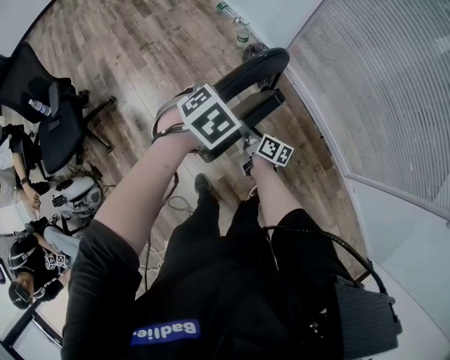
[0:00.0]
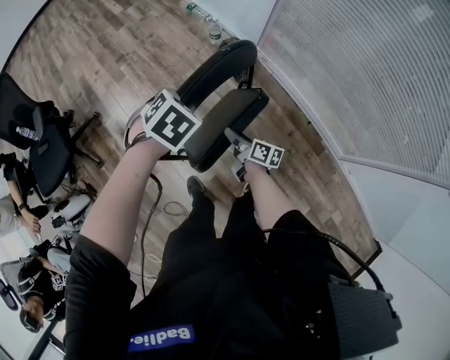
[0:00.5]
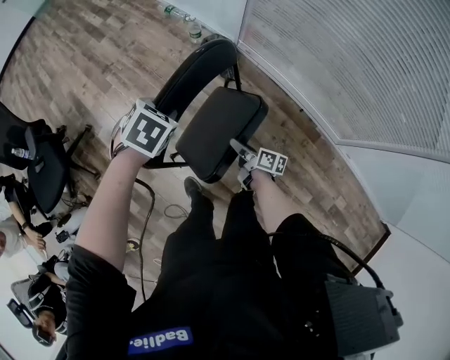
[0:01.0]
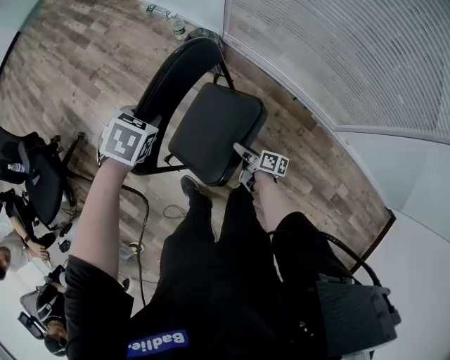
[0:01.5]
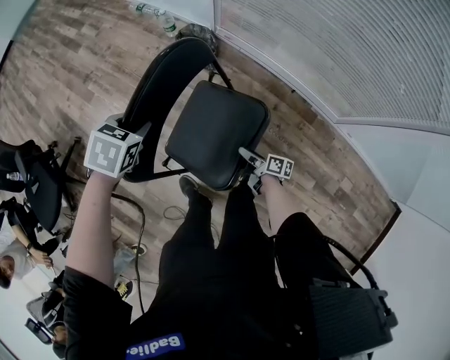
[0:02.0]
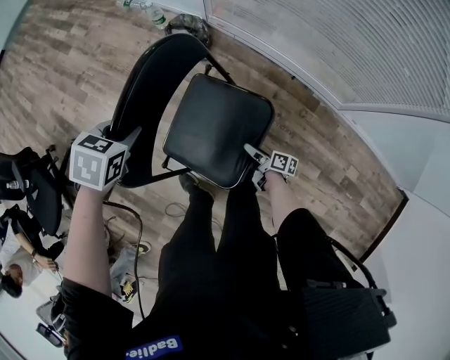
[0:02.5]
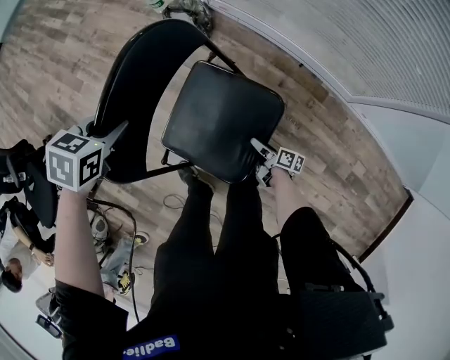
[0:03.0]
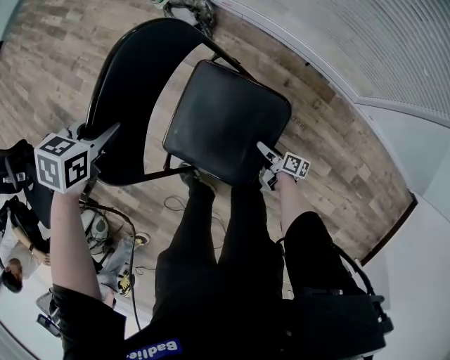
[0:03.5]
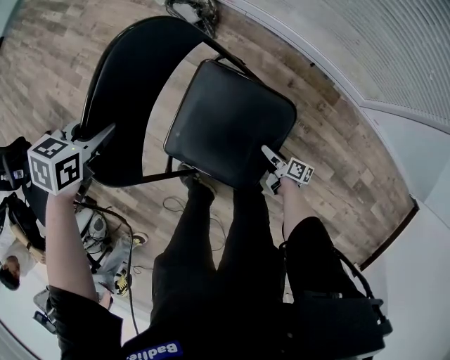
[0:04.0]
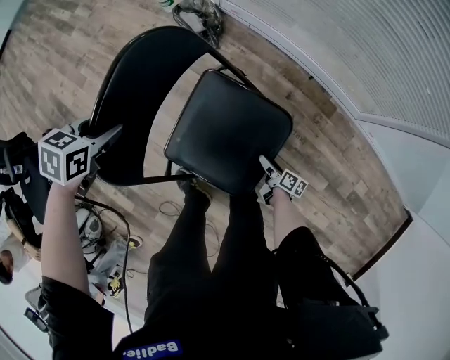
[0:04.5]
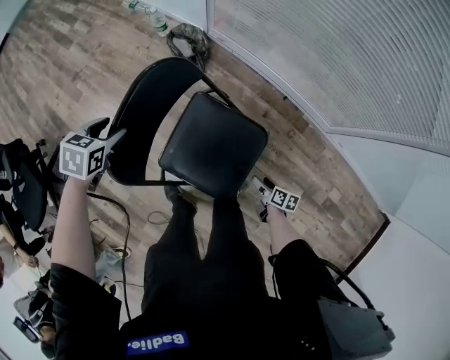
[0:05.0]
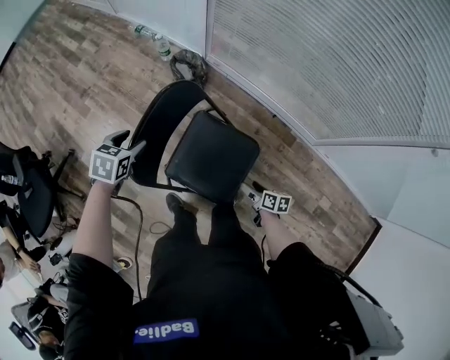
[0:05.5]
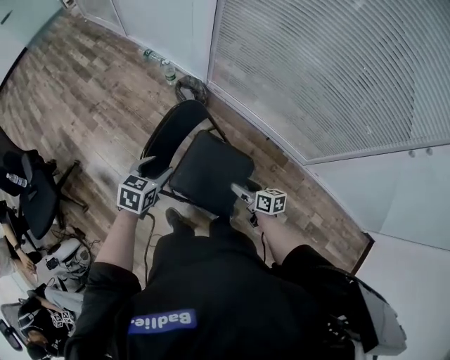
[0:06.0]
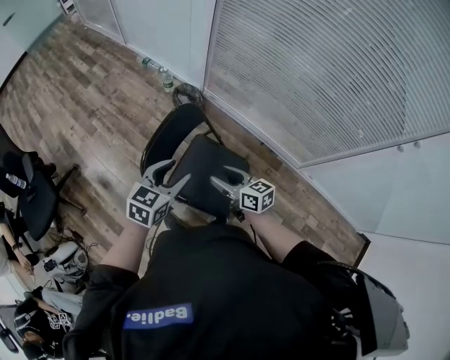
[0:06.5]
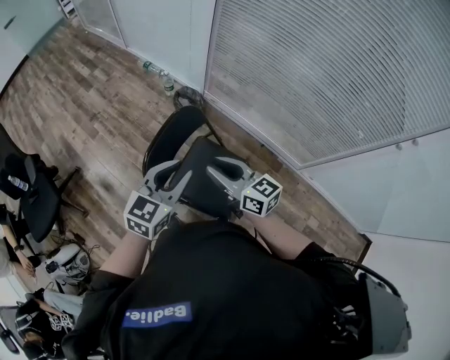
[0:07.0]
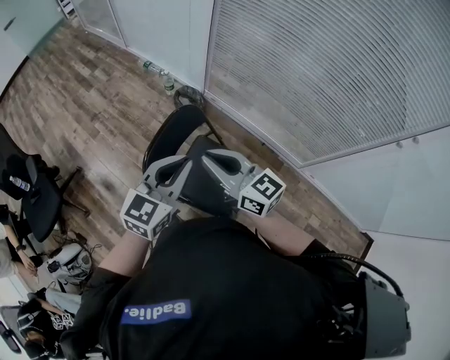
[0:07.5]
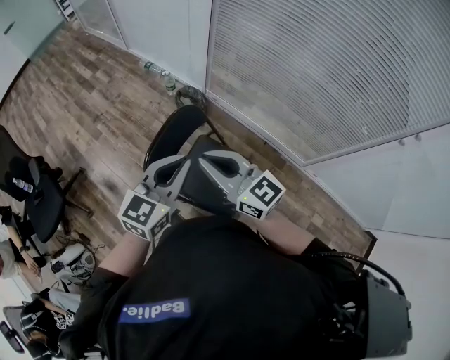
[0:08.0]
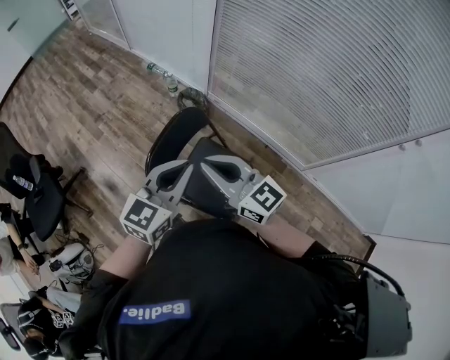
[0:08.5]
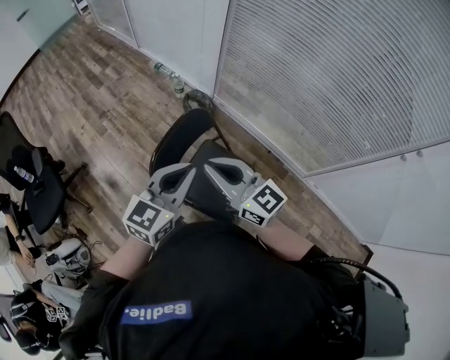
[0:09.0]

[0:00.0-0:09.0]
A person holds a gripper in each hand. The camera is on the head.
0:00.0 to 0:02.0: The left gripper heads downward and to the right, covering roughly 10 cm. Meanwhile the right gripper shifts about 35 cm to the right, backward and downward, and turns by some 20 degrees.
0:02.0 to 0:04.5: The right gripper shifts approximately 20 cm downward and to the right, and opens its fingers, while the left gripper is displaced downward by approximately 10 cm, and opens its fingers.
0:04.5 to 0:07.0: The right gripper shifts roughly 70 cm upward, twists about 60 degrees counterclockwise, seen from behind, and closes. The left gripper moves upward and backward, approximately 40 cm, and angles its fingers upward, by about 40 degrees.
0:07.0 to 0:09.0: The left gripper moves upward, approximately 5 cm, and closes, while the right gripper goes some 10 cm upward.

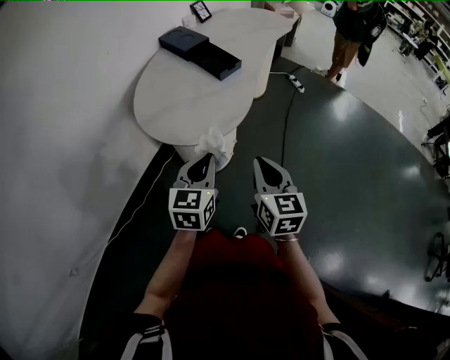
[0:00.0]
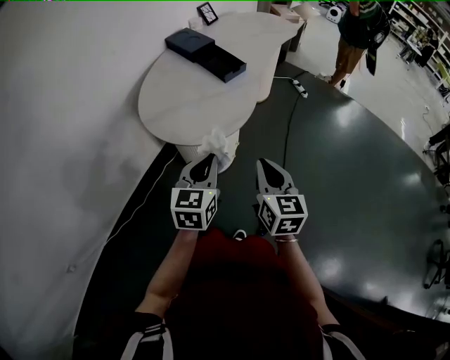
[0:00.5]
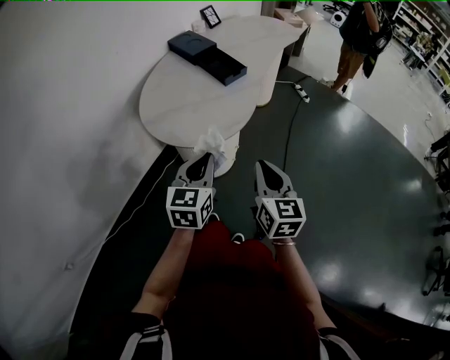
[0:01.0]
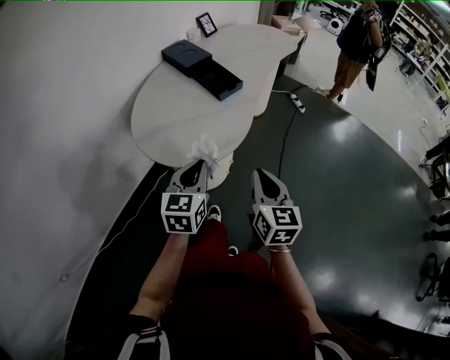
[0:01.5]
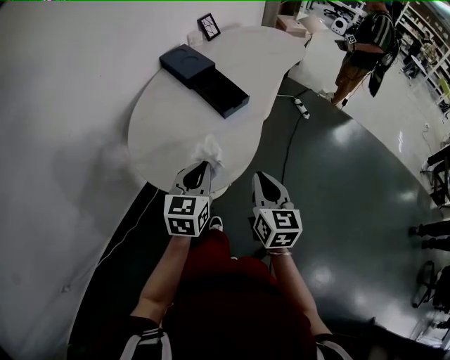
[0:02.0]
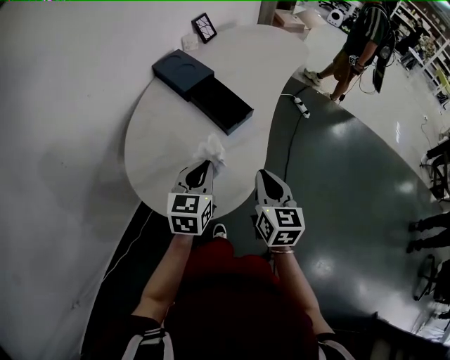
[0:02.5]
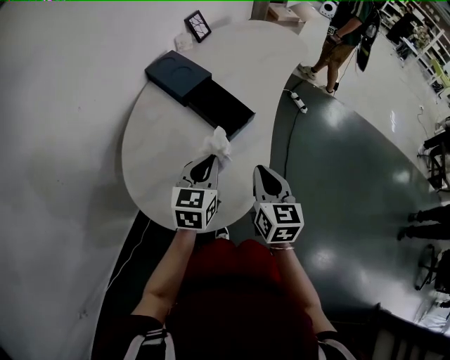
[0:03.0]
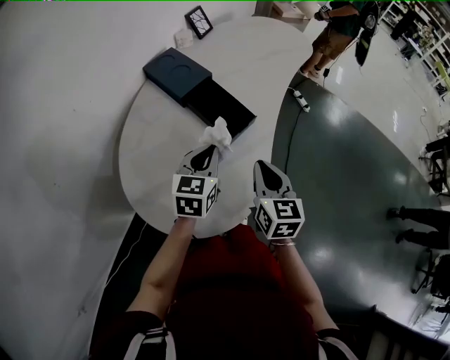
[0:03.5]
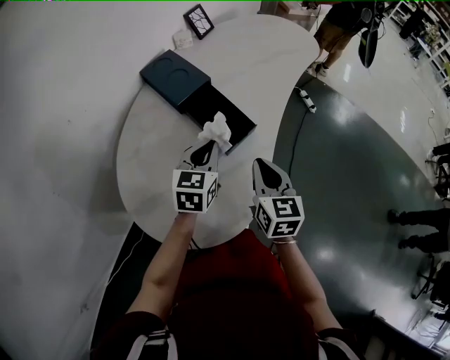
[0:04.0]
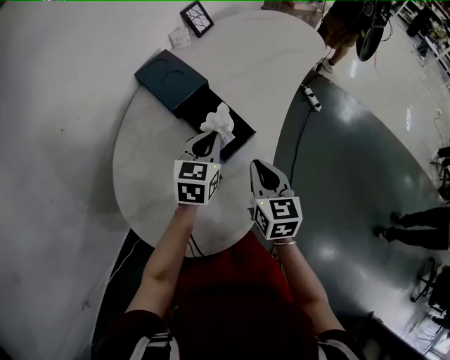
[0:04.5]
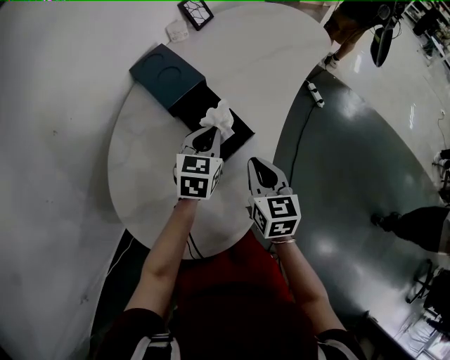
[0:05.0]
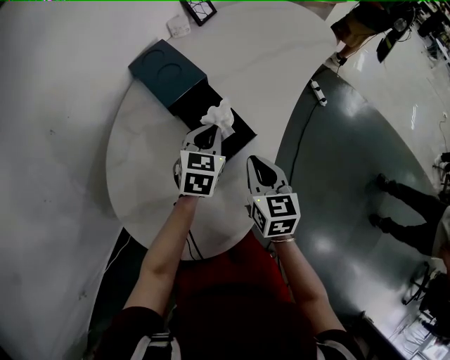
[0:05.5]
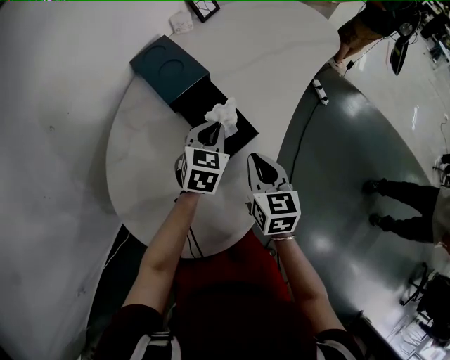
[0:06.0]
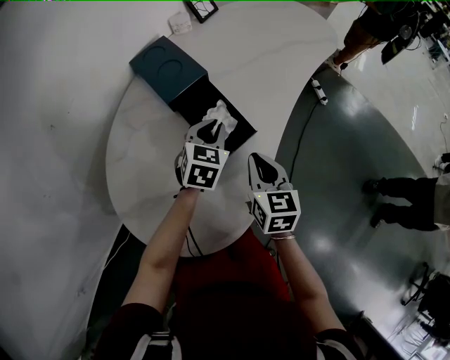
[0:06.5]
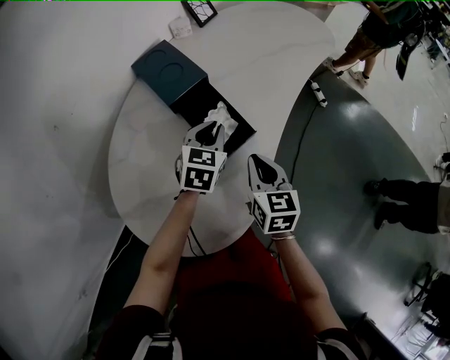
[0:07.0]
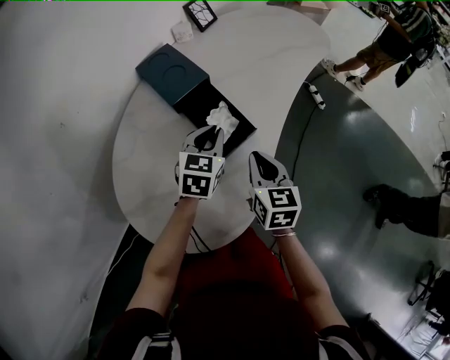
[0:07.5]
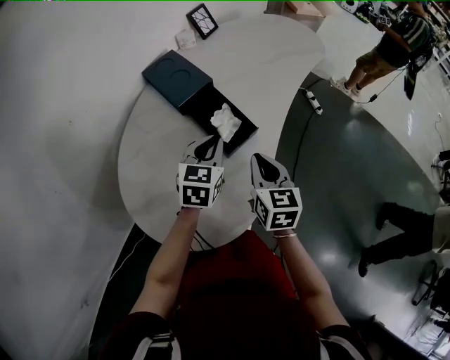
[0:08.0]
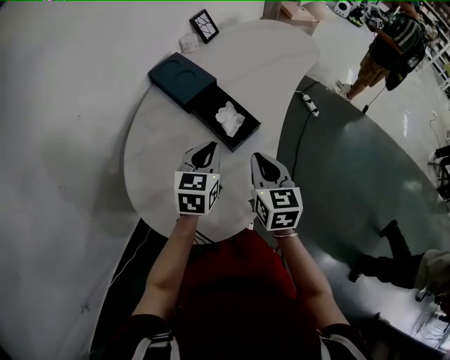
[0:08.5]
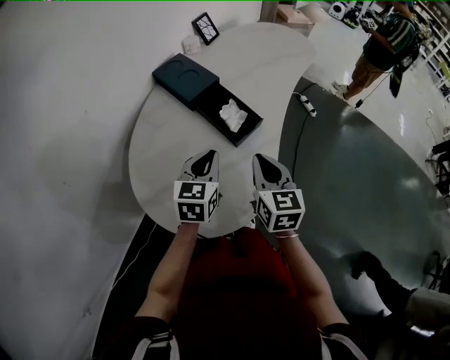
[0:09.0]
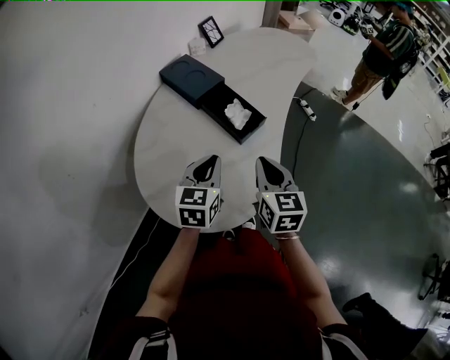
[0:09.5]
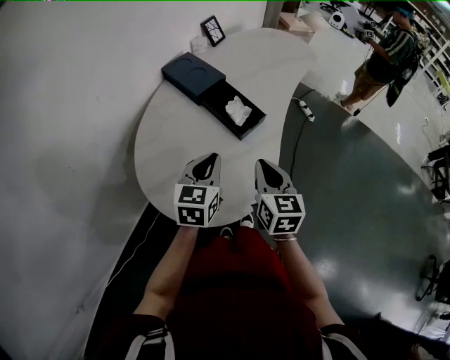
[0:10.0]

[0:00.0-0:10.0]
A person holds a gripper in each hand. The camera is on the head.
0:00.0 to 0:02.0: The two grippers go approximately 15 cm forward.
0:02.0 to 0:04.0: The grippers both shift forward by approximately 25 cm.
0:04.0 to 0:06.0: The right gripper goes some 5 cm forward. The left gripper goes some 10 cm forward and downward.
0:06.0 to 0:08.0: The left gripper goes some 10 cm backward and upward. Meanwhile the right gripper moves roughly 5 cm.
0:08.0 to 0:10.0: The grippers both shift backward by some 10 cm.

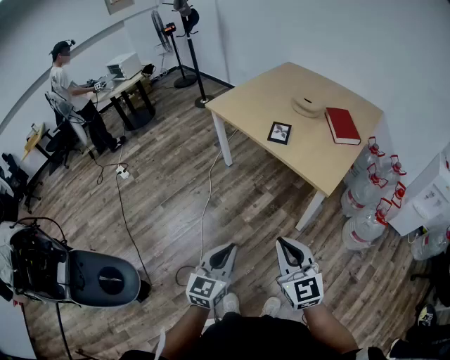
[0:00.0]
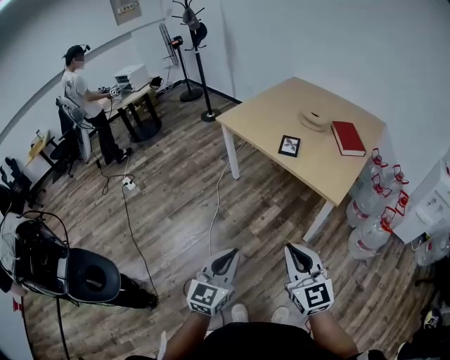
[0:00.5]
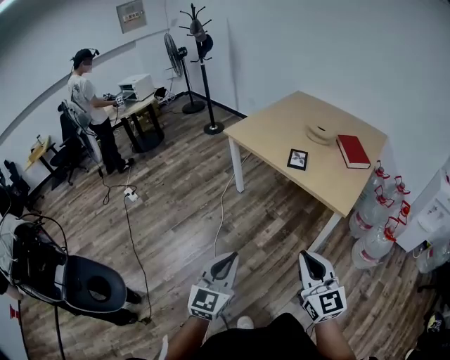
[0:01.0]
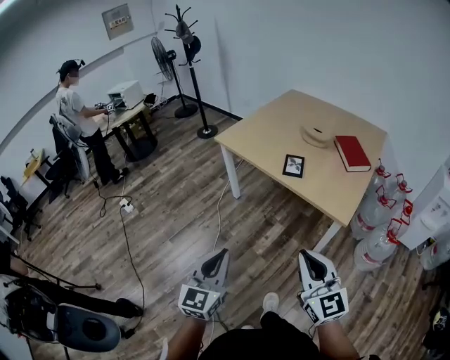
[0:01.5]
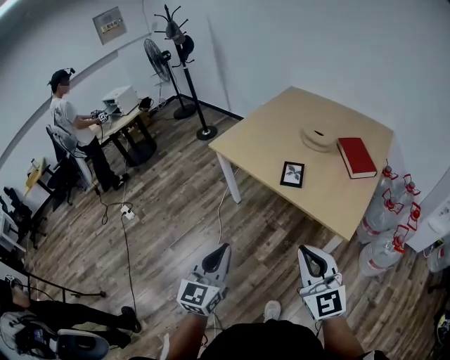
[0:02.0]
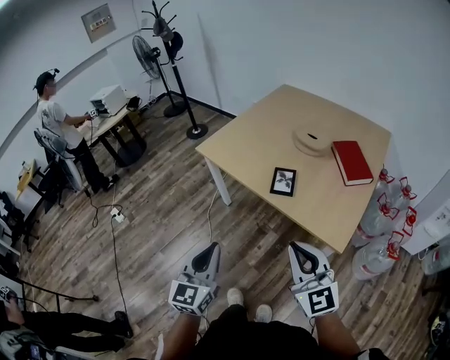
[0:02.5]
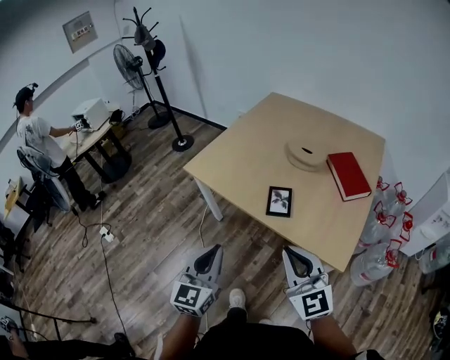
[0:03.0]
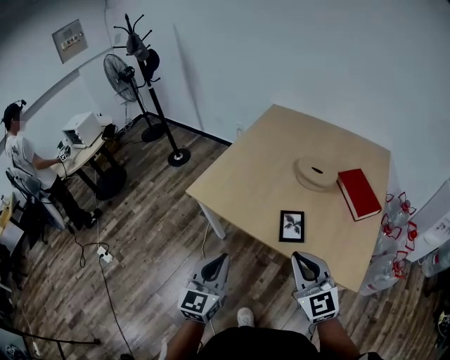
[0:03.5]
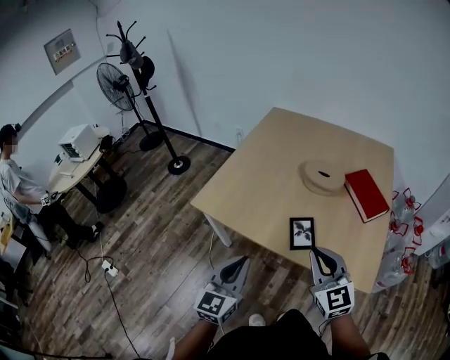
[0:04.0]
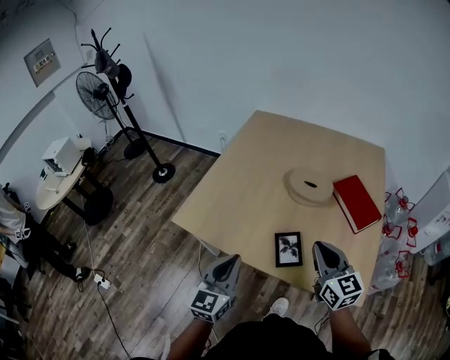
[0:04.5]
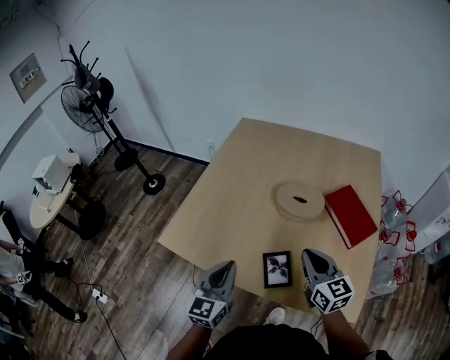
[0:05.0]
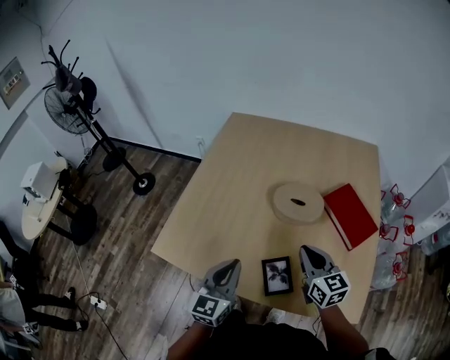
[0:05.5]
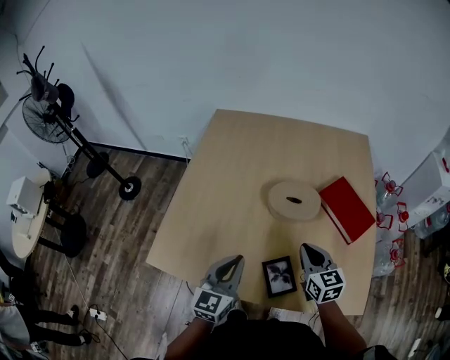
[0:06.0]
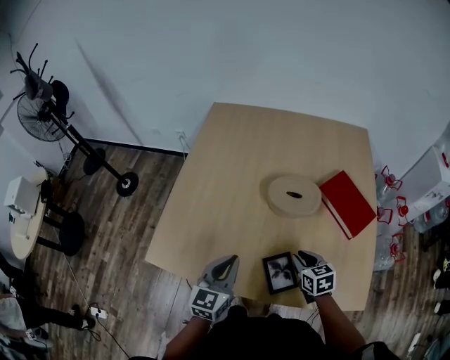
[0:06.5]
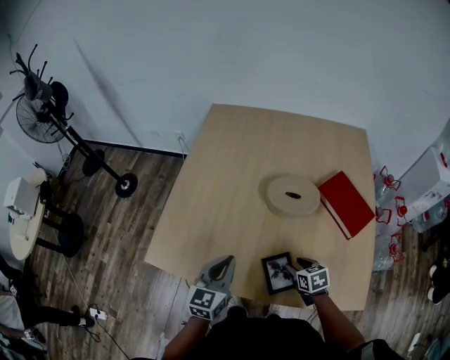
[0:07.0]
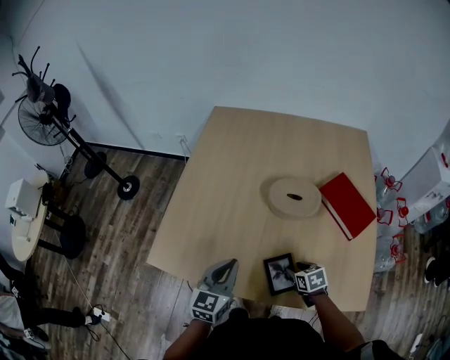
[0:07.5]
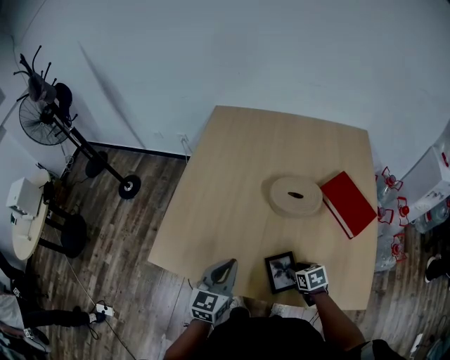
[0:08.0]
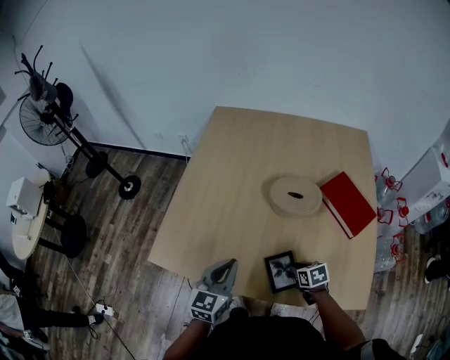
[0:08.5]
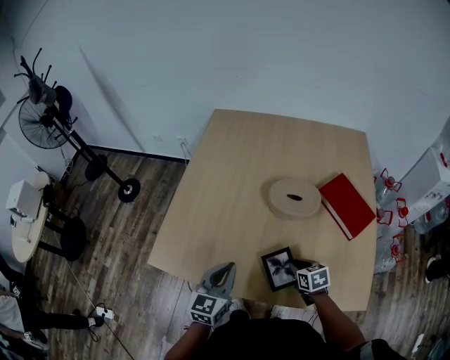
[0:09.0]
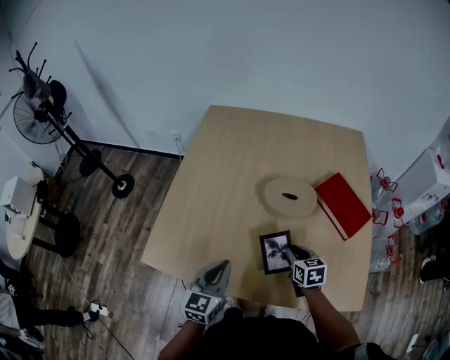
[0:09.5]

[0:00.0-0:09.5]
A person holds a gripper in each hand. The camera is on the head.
0:00.0 to 0:02.0: The two grippers go approximately 20 cm forward.
0:02.0 to 0:04.0: Both grippers travel together forward, roughly 35 cm.
0:04.0 to 0:05.5: Both grippers move forward, about 25 cm. The right gripper swivels roughly 30 degrees.
0:05.5 to 0:07.5: The right gripper moves downward, roughly 25 cm, tilts its fingers some 40 degrees downward, and opens. Meanwhile the left gripper moves downward, about 5 cm.
0:07.5 to 0:09.5: The right gripper is displaced upward and forward by roughly 10 cm, rotates some 20 degrees, and closes its fingers.
